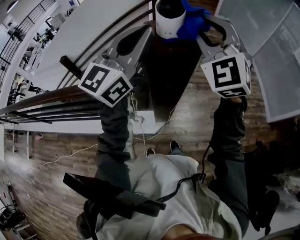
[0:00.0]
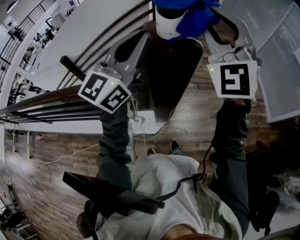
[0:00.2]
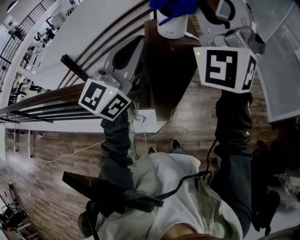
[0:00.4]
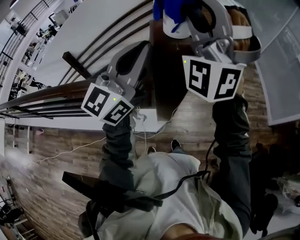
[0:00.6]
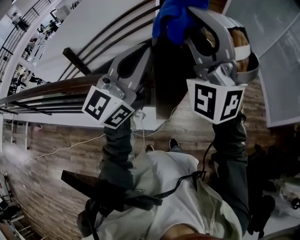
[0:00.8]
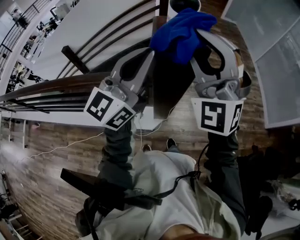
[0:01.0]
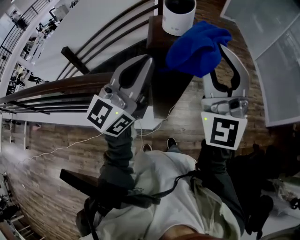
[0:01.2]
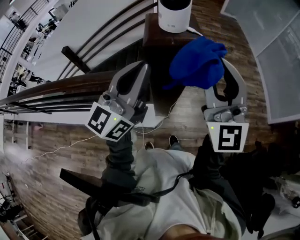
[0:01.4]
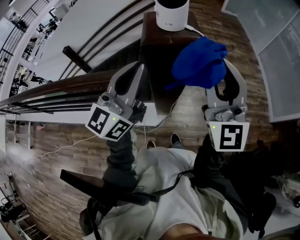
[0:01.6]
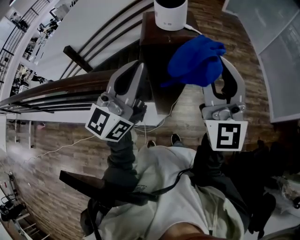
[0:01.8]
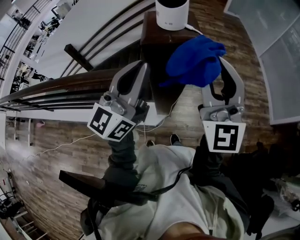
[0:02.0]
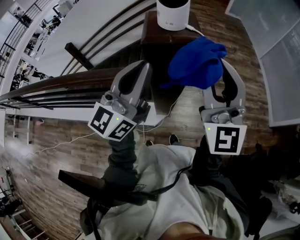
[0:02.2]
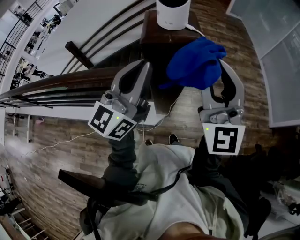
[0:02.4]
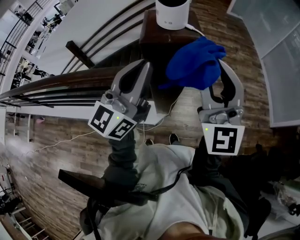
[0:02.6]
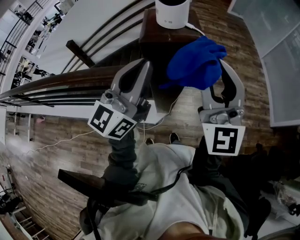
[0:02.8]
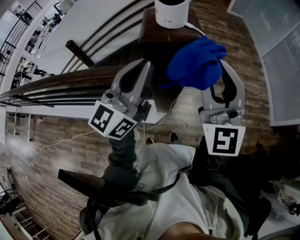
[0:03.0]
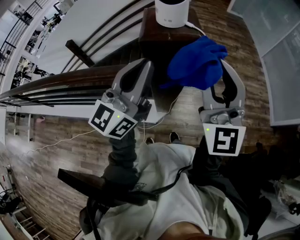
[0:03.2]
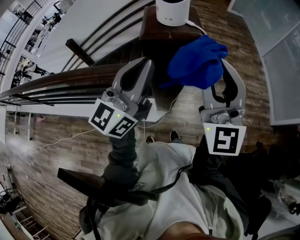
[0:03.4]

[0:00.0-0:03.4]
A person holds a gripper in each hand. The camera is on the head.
0.0 to 1.6 s: The right gripper shifts roughly 10 cm backward and to the right, reaches some 10 cm upward, then returns, and changes its angle by roughly 40 degrees, while the left gripper is displaced downward and backward by approximately 10 cm.
1.6 to 3.4 s: The grippers stay close to where they were, moving slightly.

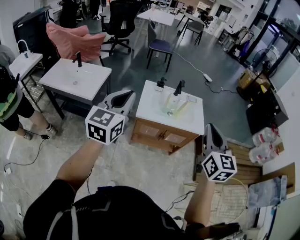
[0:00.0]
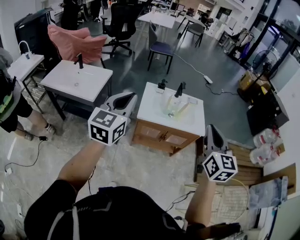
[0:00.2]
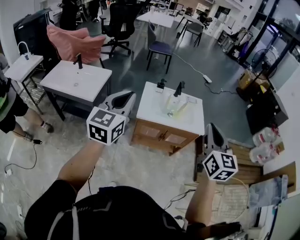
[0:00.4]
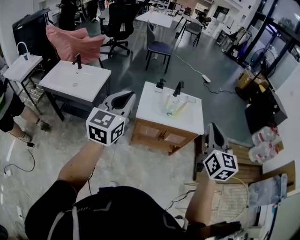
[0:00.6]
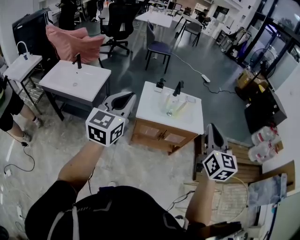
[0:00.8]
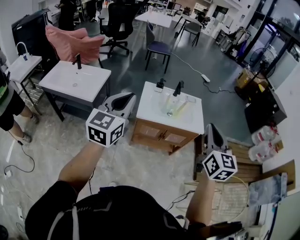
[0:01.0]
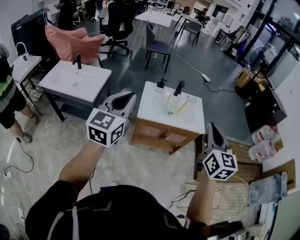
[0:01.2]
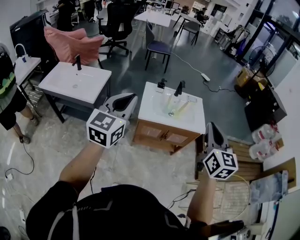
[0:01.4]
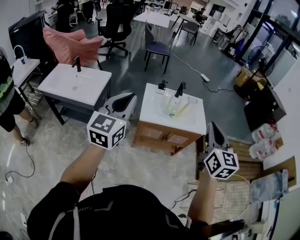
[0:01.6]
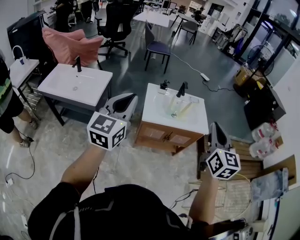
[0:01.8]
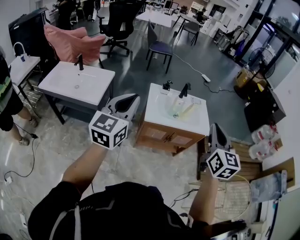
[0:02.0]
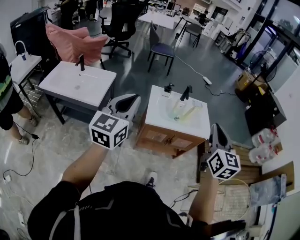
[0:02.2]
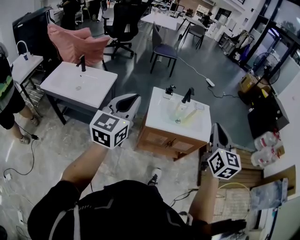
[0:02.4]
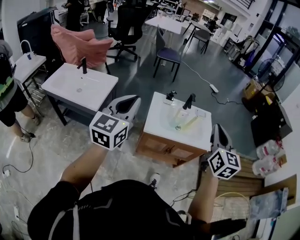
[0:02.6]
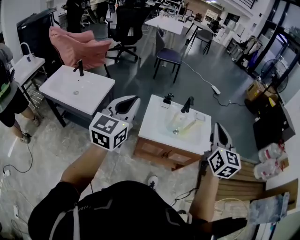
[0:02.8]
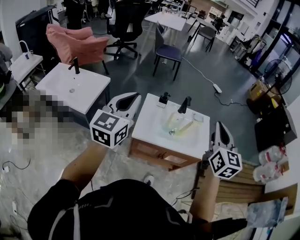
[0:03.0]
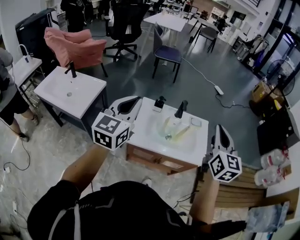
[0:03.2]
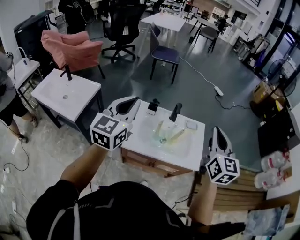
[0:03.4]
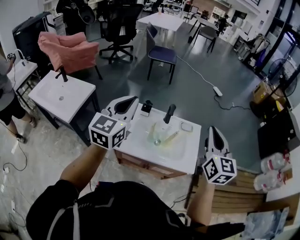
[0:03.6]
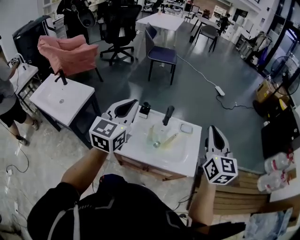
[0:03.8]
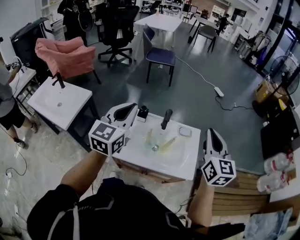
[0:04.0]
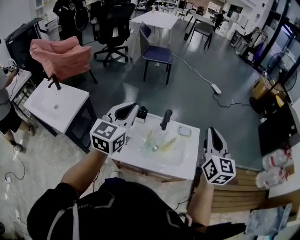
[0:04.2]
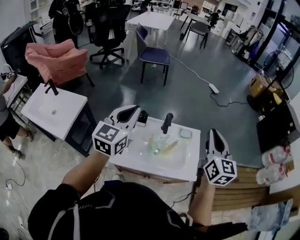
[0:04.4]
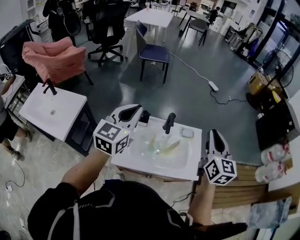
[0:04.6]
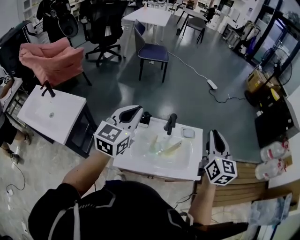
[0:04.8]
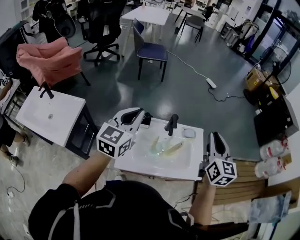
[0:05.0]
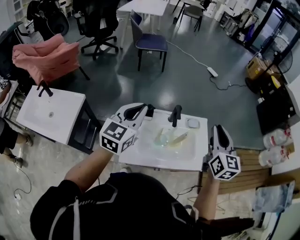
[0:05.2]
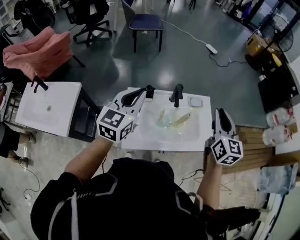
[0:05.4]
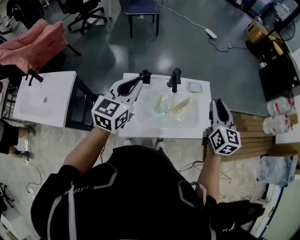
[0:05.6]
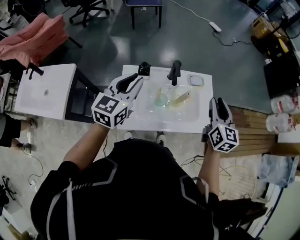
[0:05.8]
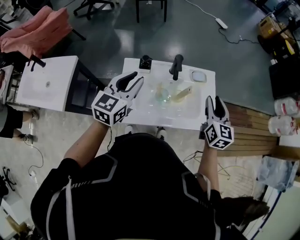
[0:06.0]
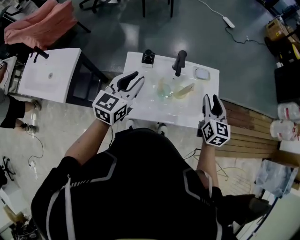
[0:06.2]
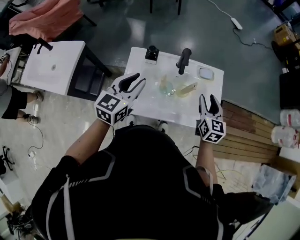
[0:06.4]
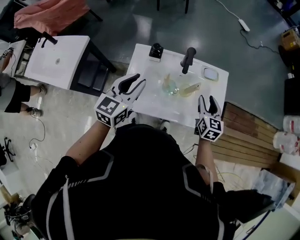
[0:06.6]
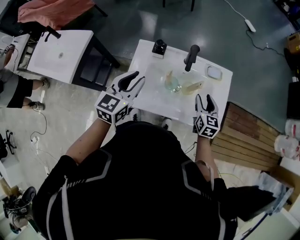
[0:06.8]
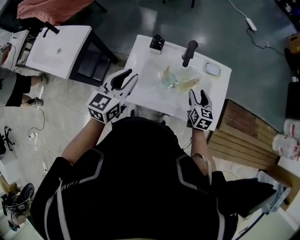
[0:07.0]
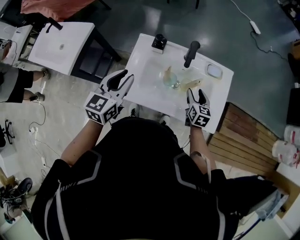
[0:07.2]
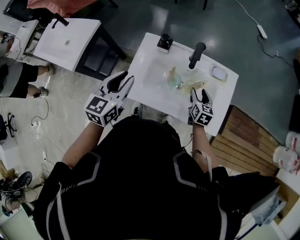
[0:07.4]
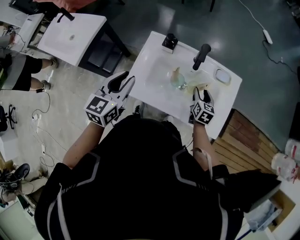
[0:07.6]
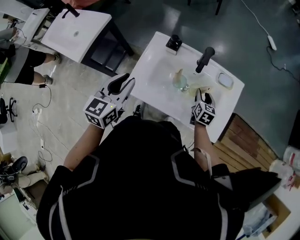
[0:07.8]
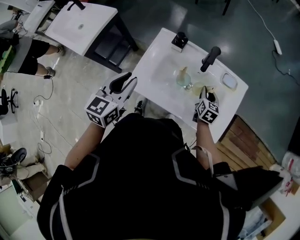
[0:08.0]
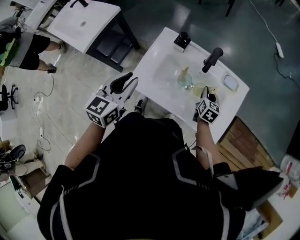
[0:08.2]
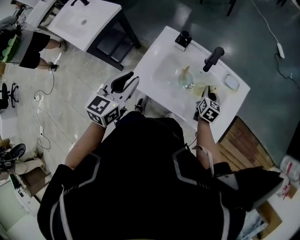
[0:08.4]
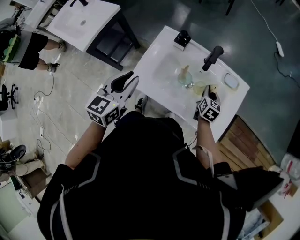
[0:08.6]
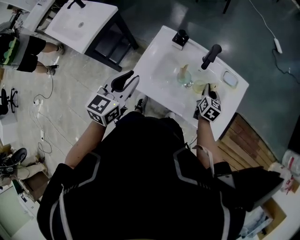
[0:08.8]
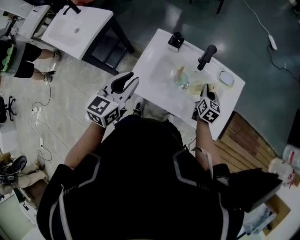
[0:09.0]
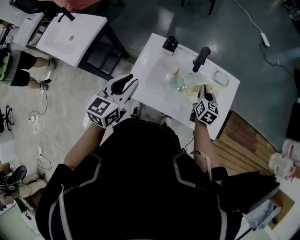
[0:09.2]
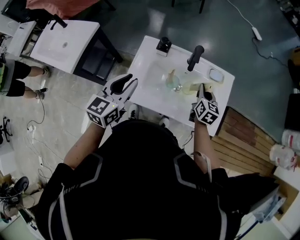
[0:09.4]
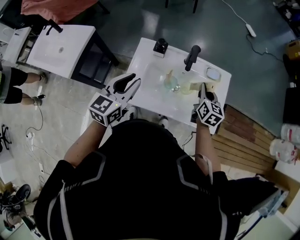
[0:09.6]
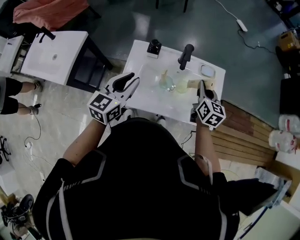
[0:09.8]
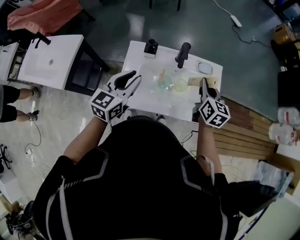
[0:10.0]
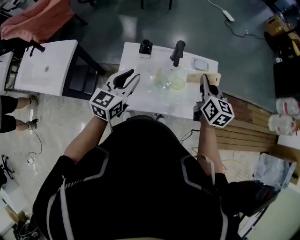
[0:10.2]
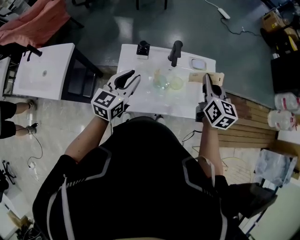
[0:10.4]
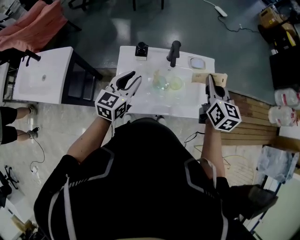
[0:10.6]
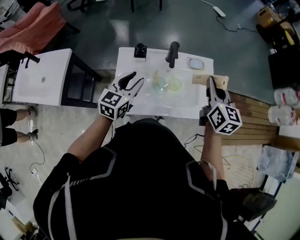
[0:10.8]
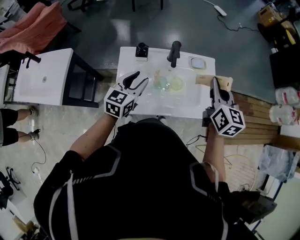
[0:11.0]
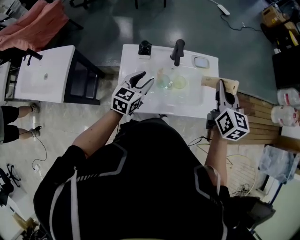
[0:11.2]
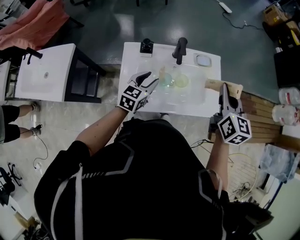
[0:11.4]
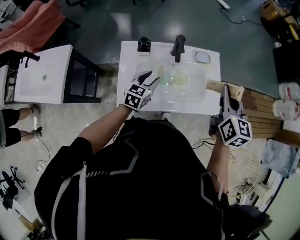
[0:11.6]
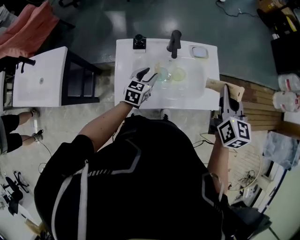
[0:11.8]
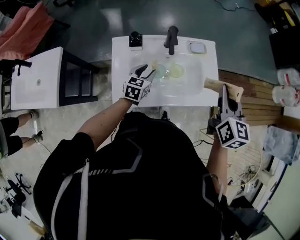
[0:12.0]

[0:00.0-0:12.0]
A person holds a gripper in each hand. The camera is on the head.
0.0 to 1.6 s: The grippers move only a little.
1.6 to 3.0 s: The grippers both shift forward by roughly 20 cm.
3.0 to 4.4 s: Both grippers move forward and to the right, approximately 20 cm.
4.4 to 6.0 s: Both grippers move downward, approximately 15 cm. The right gripper opens its fingers; the left gripper opens.
6.0 to 7.6 s: The left gripper is displaced backward and downward by some 10 cm, and changes its angle by about 20 degrees. Meanwhile the right gripper heads downward, covering roughly 25 cm, and rotates approximately 30 degrees.
7.6 to 9.0 s: The right gripper closes its fingers.
9.0 to 10.4 s: The right gripper travels upward by approximately 25 cm. The left gripper moves forward, some 10 cm, and swivels roughly 20 degrees.
10.4 to 12.0 s: The left gripper moves downward, roughly 15 cm. The right gripper moves backward and to the right, roughly 10 cm.

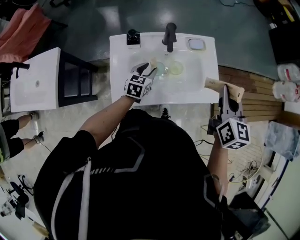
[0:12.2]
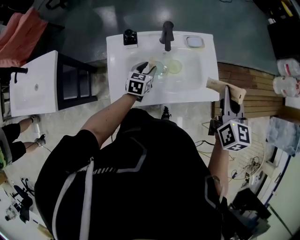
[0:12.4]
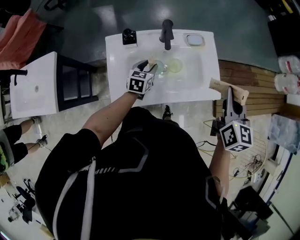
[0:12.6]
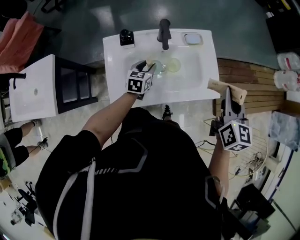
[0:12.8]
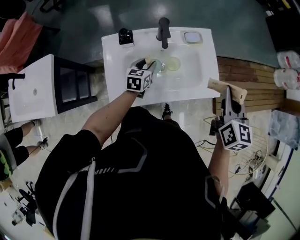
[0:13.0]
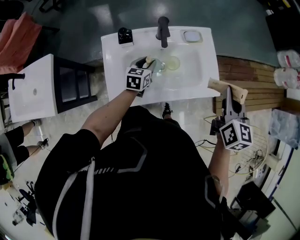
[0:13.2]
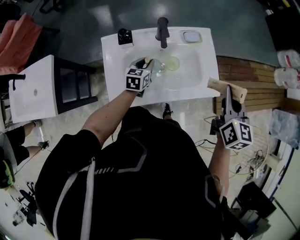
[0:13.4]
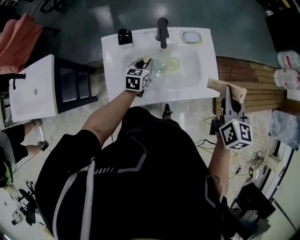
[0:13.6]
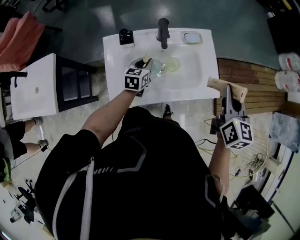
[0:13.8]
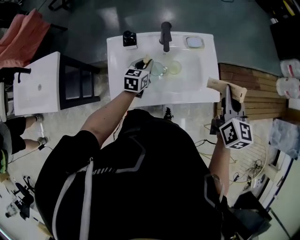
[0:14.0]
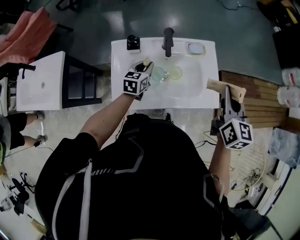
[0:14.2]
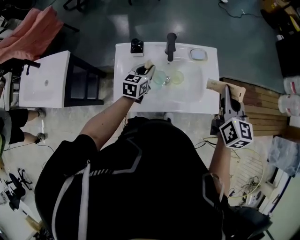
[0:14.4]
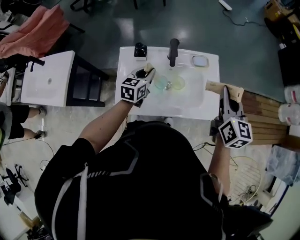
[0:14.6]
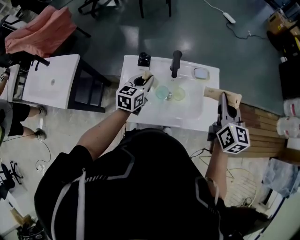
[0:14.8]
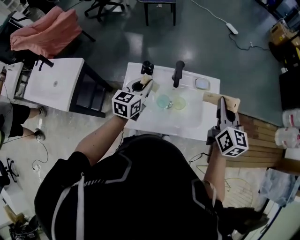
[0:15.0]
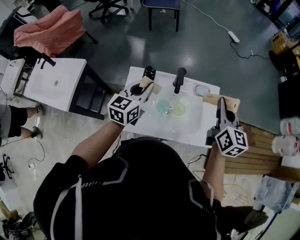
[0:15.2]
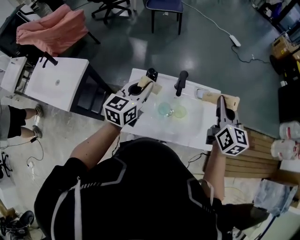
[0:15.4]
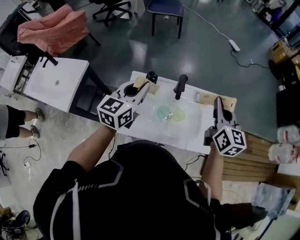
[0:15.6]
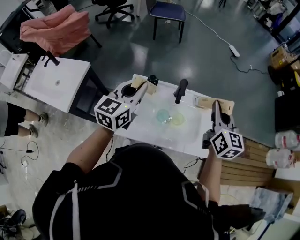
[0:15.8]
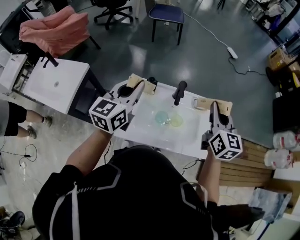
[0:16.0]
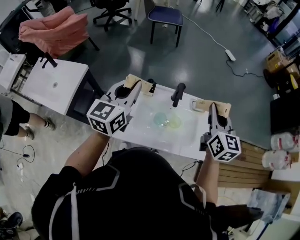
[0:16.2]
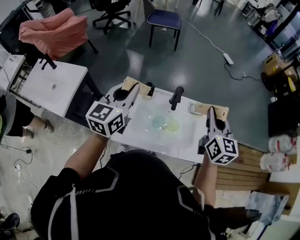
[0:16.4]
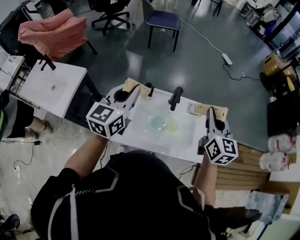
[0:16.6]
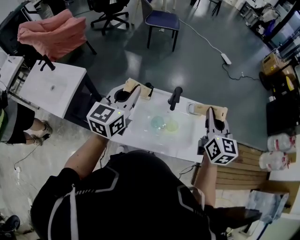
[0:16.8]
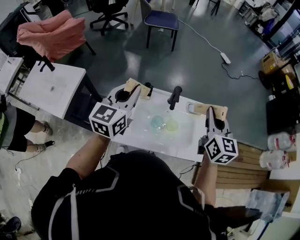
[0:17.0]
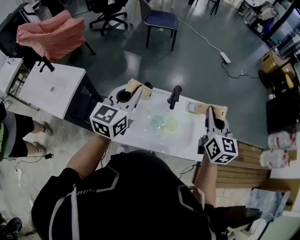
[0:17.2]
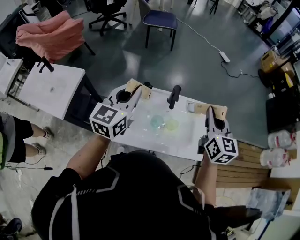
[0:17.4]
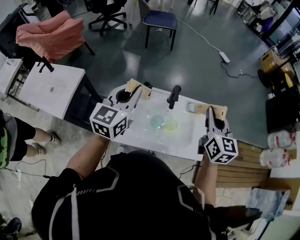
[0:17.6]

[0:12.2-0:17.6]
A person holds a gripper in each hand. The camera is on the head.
12.2 to 13.6 s: The left gripper closes up.
13.6 to 15.0 s: The left gripper heads upward, covering approximately 15 cm; the right gripper moves forward and to the left, roughly 10 cm.
15.0 to 16.2 s: The right gripper shifts approximately 10 cm to the left and upward. The left gripper moves upward, about 15 cm.
16.2 to 17.6 s: The grippers stay close to where they were, moving slightly.

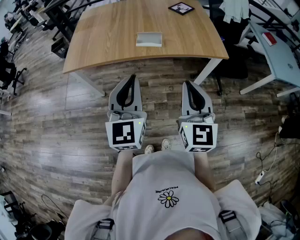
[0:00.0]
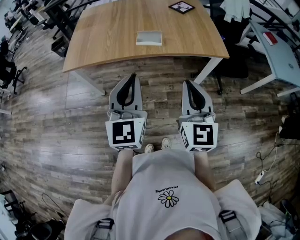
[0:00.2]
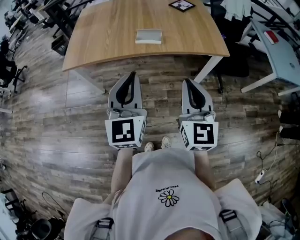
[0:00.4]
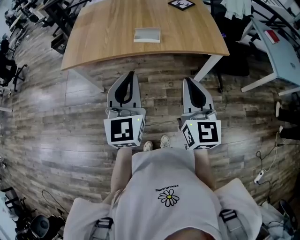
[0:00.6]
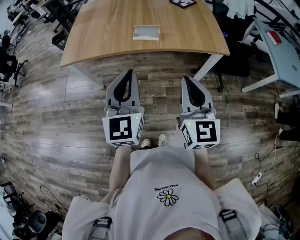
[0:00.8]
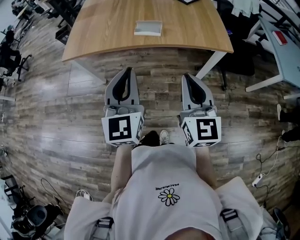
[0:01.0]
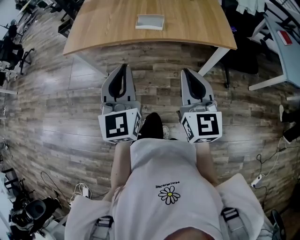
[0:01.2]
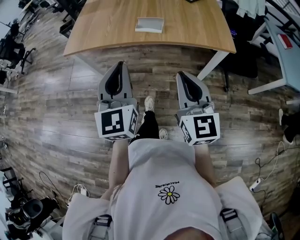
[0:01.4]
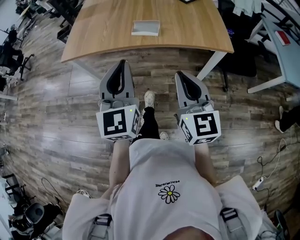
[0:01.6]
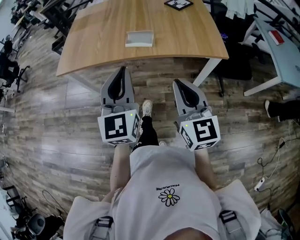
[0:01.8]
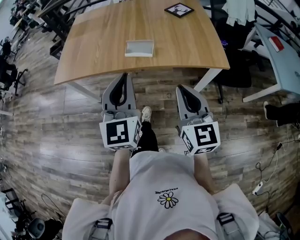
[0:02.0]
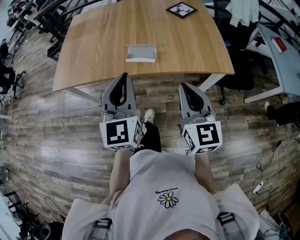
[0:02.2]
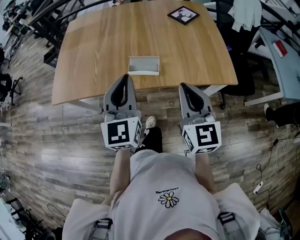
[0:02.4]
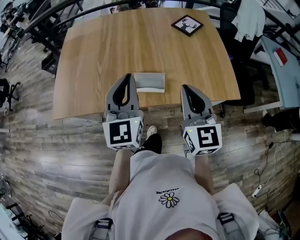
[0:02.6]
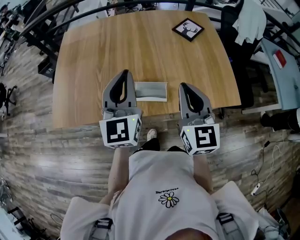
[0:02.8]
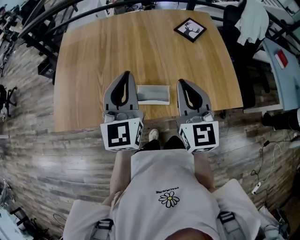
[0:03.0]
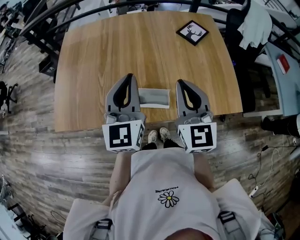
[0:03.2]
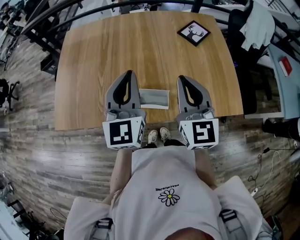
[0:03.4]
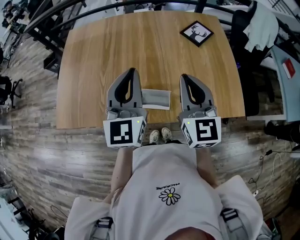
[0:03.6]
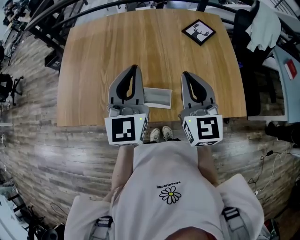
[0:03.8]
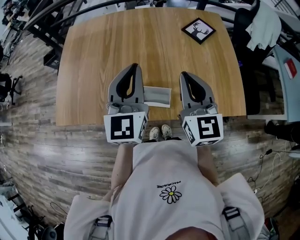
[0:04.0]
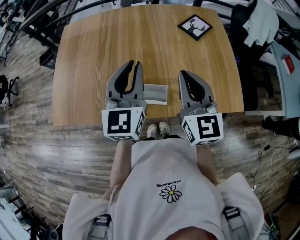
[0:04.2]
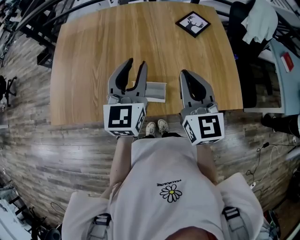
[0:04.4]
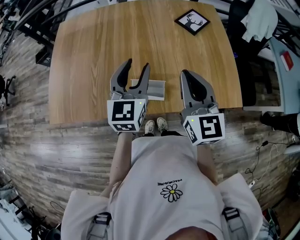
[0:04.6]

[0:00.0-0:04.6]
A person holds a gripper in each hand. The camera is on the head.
0.0 to 1.6 s: The right gripper changes place by about 5 cm; the left gripper heads to the right, covering some 5 cm.
1.6 to 3.0 s: Both grippers move forward, some 40 cm.
3.0 to 4.6 s: The left gripper travels downward and to the right by some 10 cm, and opens. Meanwhile the right gripper shifts by some 5 cm.
